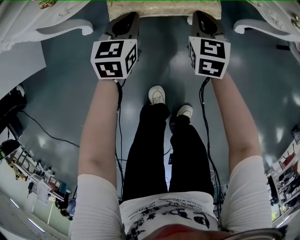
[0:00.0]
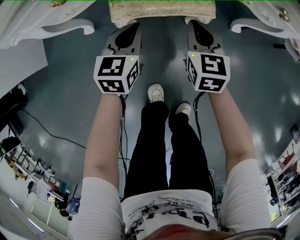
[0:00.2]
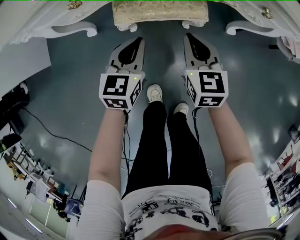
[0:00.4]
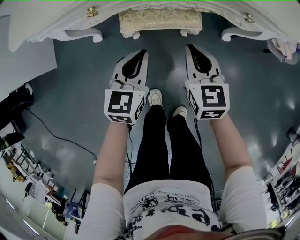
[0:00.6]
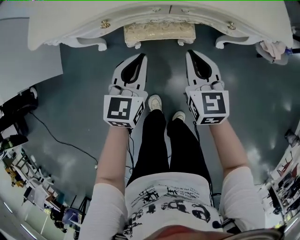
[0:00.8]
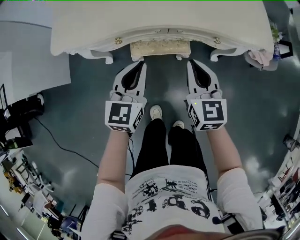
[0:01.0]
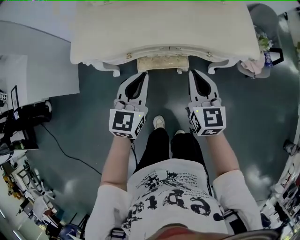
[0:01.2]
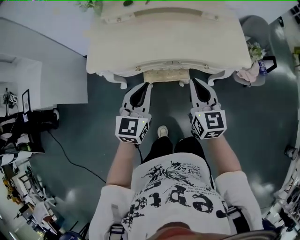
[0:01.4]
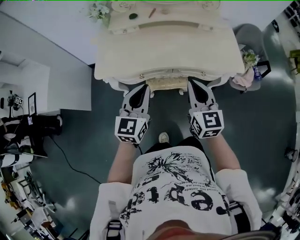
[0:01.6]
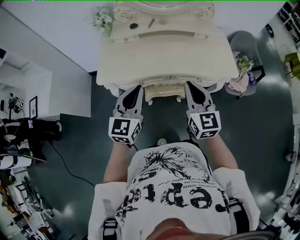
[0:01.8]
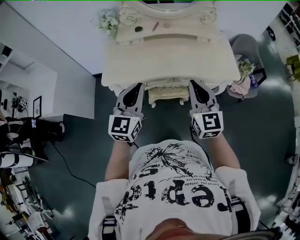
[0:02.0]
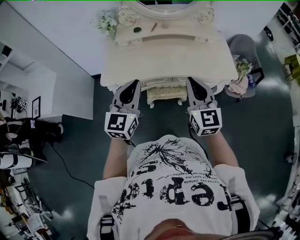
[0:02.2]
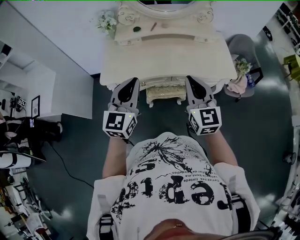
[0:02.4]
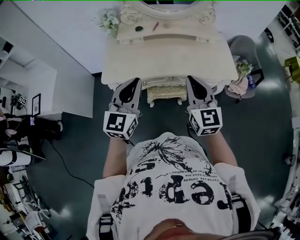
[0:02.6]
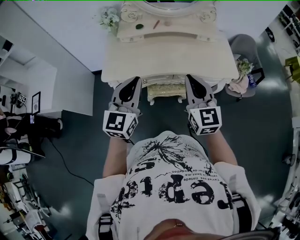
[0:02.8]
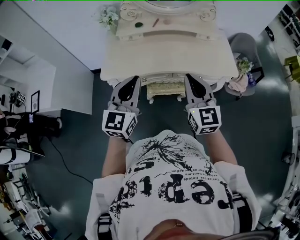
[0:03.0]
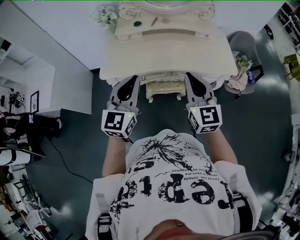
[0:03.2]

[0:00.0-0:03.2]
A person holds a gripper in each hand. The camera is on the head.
0:00.0 to 0:01.6: The two grippers go roughly 60 cm upward. The left gripper rotates approximately 30 degrees; the right gripper changes its angle by about 30 degrees.
0:01.6 to 0:03.2: Both grippers move upward, about 10 cm.

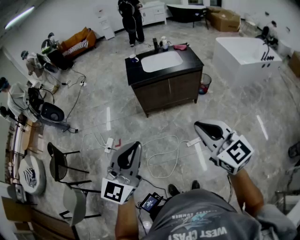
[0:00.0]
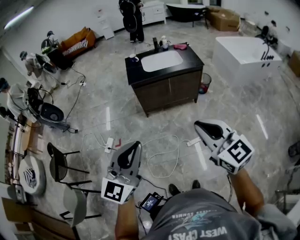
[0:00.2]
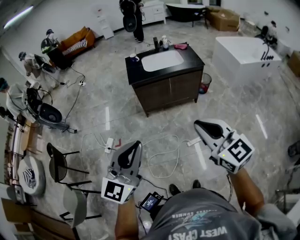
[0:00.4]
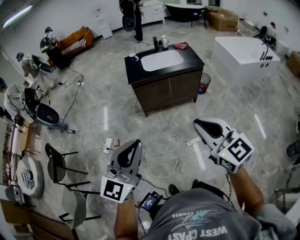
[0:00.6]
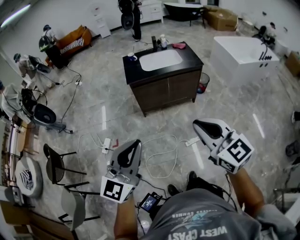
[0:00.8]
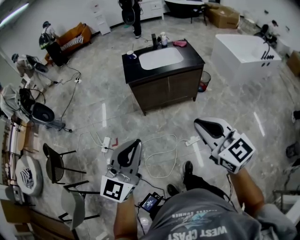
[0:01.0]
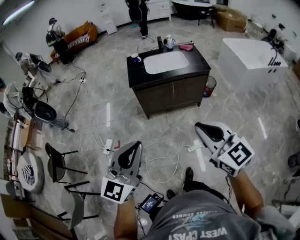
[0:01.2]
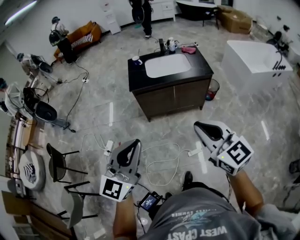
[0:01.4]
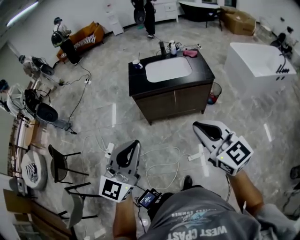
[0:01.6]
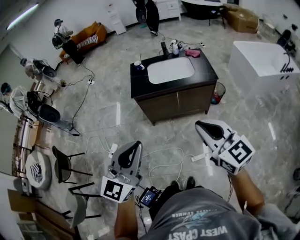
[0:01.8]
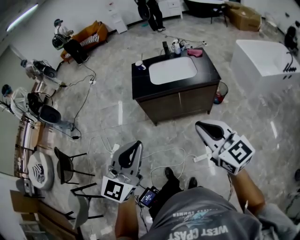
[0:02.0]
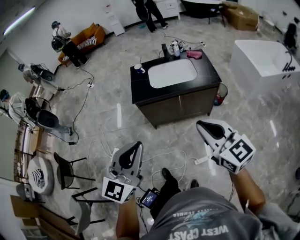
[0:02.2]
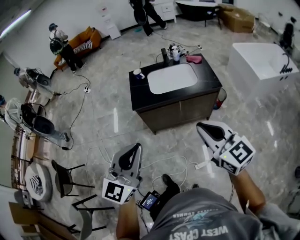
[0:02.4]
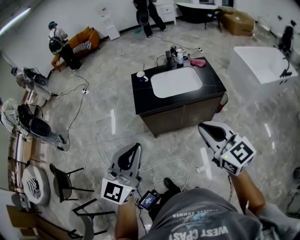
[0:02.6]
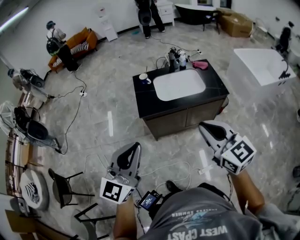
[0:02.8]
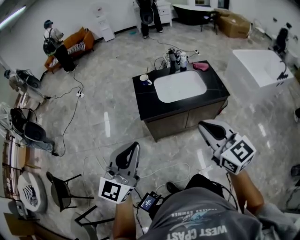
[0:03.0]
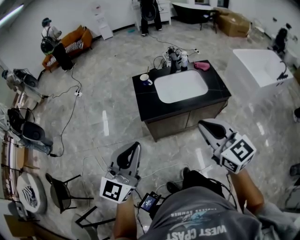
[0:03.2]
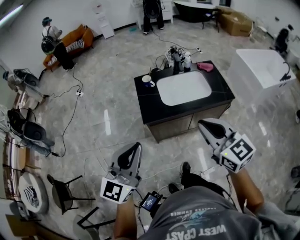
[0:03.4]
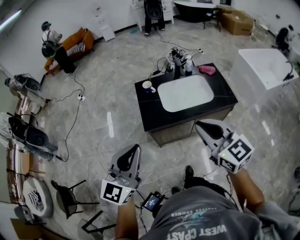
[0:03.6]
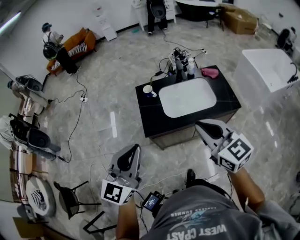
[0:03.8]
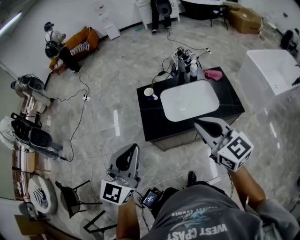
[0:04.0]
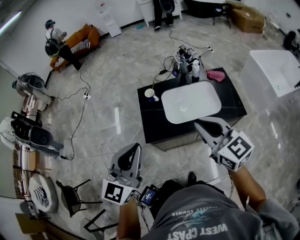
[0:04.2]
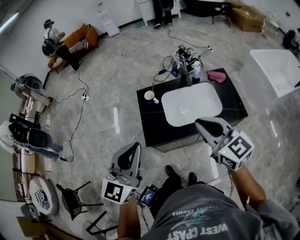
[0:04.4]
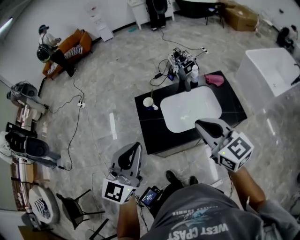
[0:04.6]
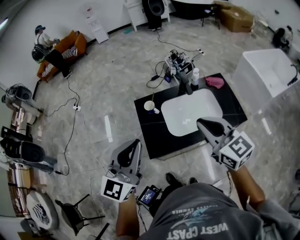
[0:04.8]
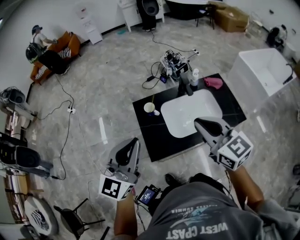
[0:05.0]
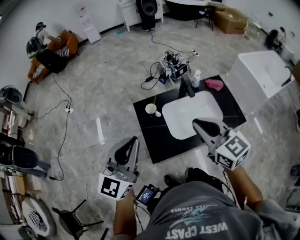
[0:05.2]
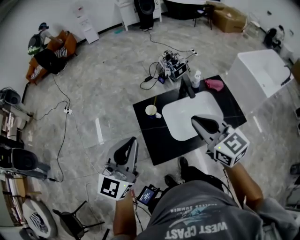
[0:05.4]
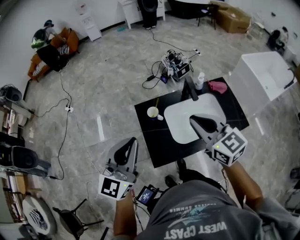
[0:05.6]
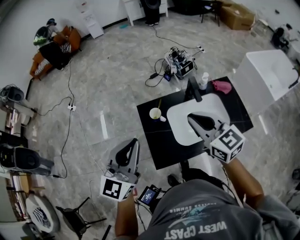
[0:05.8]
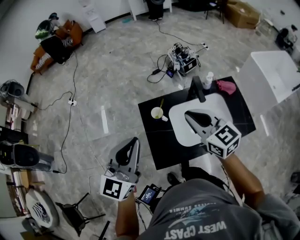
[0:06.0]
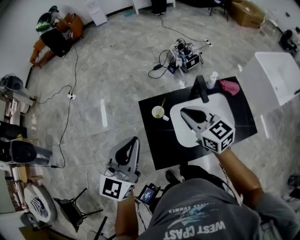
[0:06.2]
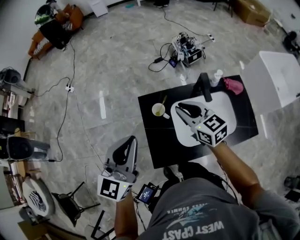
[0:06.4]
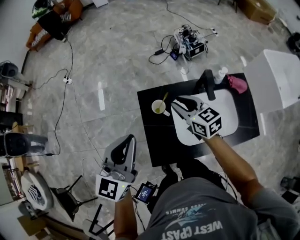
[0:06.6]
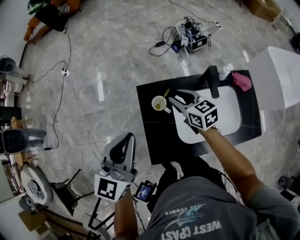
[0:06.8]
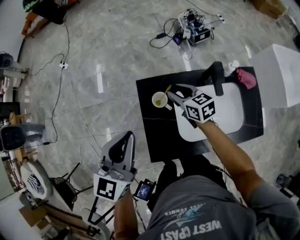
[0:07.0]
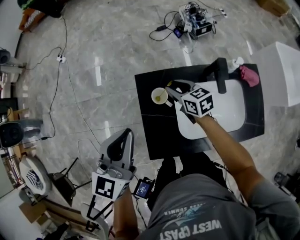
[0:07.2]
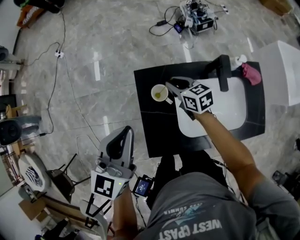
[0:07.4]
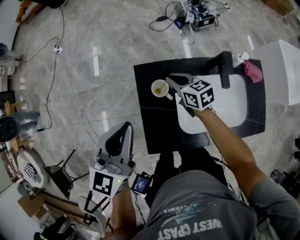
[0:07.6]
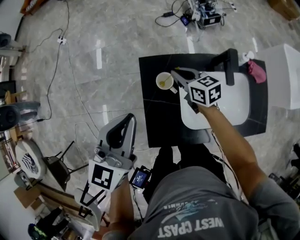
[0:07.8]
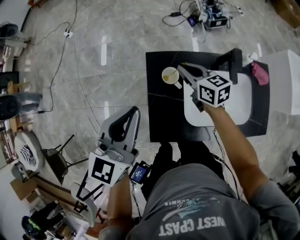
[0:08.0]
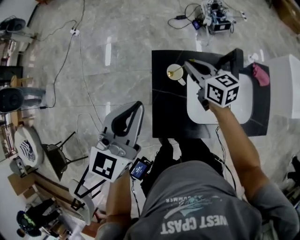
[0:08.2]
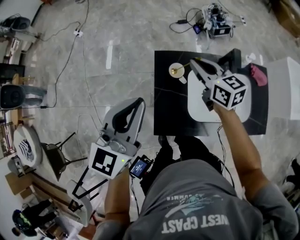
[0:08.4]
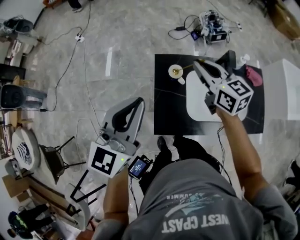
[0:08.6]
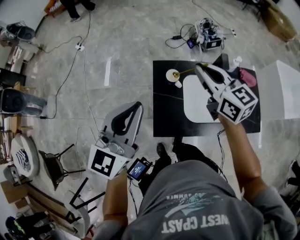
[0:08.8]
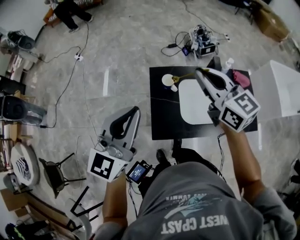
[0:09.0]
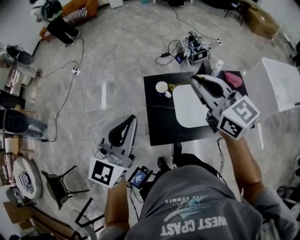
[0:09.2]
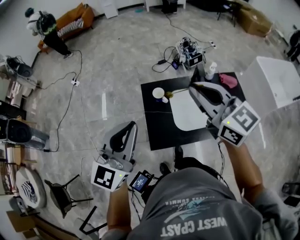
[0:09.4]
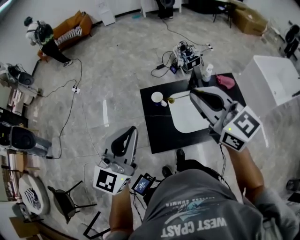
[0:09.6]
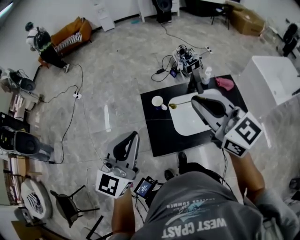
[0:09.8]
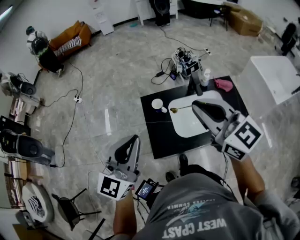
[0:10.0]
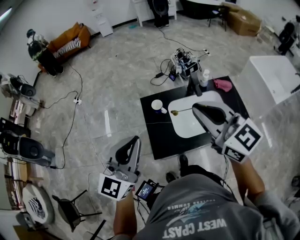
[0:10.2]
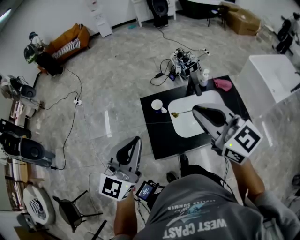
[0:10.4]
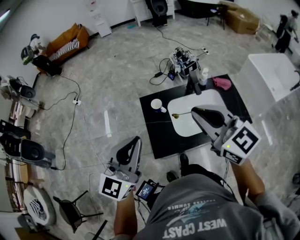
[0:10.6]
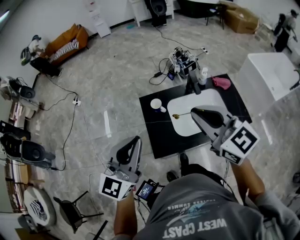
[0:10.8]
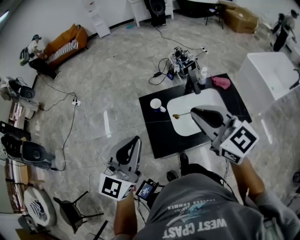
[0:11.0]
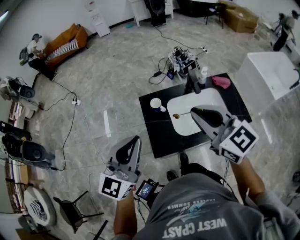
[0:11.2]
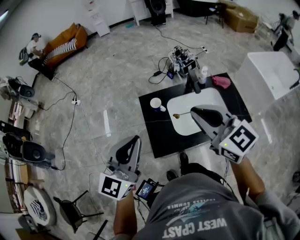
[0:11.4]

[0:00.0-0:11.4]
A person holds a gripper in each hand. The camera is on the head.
0:00.0 to 0:01.4: Both grippers travel together forward, roughly 15 cm.
0:01.4 to 0:02.8: Both grippers travel together forward, roughly 25 cm.
0:02.8 to 0:04.2: The two grippers go about 25 cm forward.
0:04.2 to 0:05.6: The grippers both shift forward and to the left by about 20 cm.
0:05.6 to 0:07.2: The right gripper moves downward and forward, approximately 40 cm, changes its angle by about 30 degrees, and opens up, while the left gripper heads downward and forward, covering about 20 cm, and rotates about 20 degrees.
0:07.2 to 0:08.6: The right gripper shifts some 20 cm upward, changes its angle by about 20 degrees, and closes, while the left gripper heads backward and upward, covering roughly 10 cm.
0:08.6 to 0:10.0: The right gripper is displaced backward and upward by about 30 cm, and rotates about 20 degrees. The left gripper travels backward and upward by some 10 cm.
0:10.0 to 0:11.4: The grippers make only small movements.

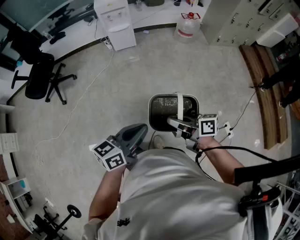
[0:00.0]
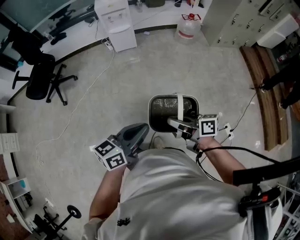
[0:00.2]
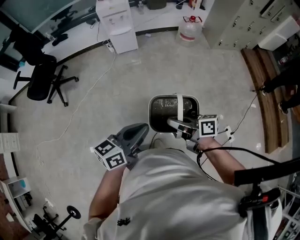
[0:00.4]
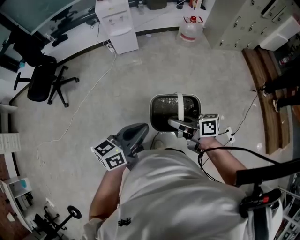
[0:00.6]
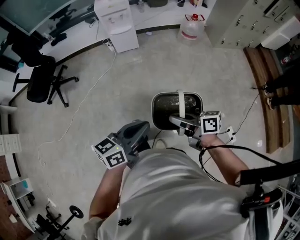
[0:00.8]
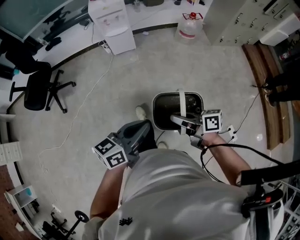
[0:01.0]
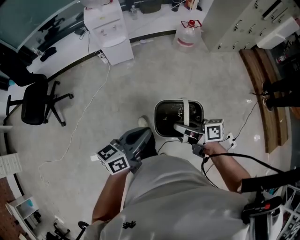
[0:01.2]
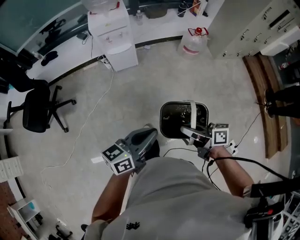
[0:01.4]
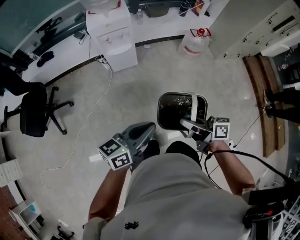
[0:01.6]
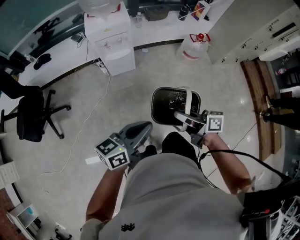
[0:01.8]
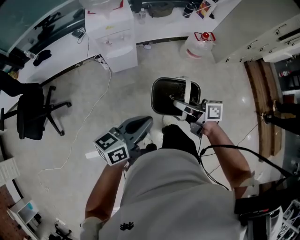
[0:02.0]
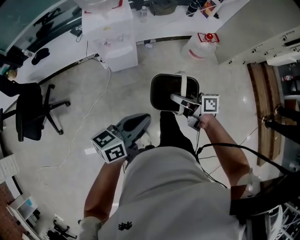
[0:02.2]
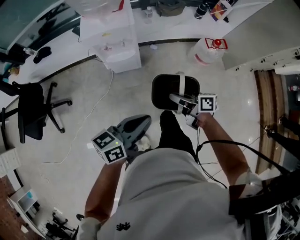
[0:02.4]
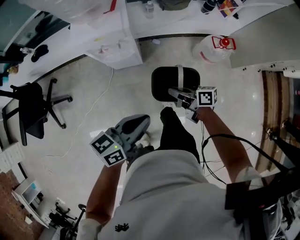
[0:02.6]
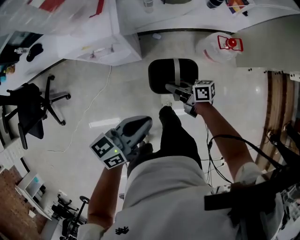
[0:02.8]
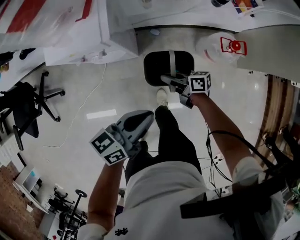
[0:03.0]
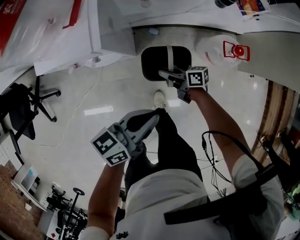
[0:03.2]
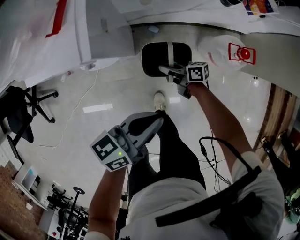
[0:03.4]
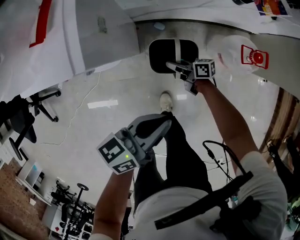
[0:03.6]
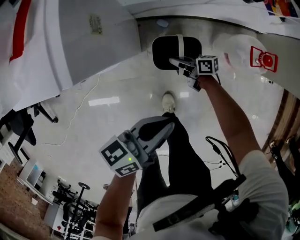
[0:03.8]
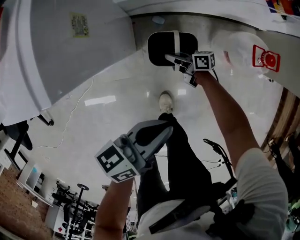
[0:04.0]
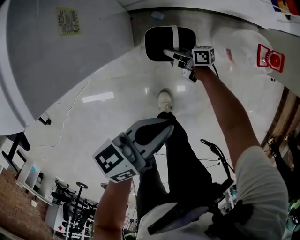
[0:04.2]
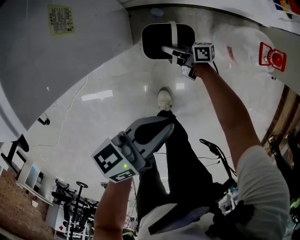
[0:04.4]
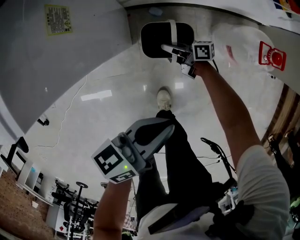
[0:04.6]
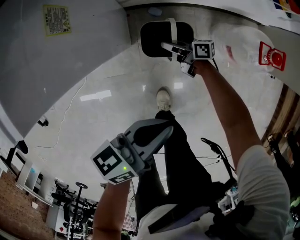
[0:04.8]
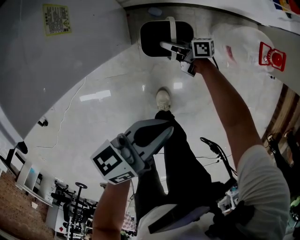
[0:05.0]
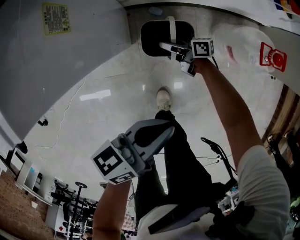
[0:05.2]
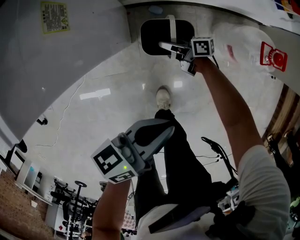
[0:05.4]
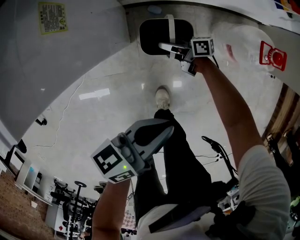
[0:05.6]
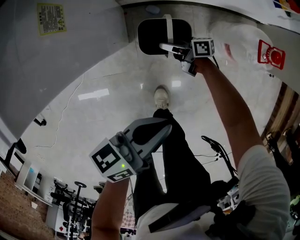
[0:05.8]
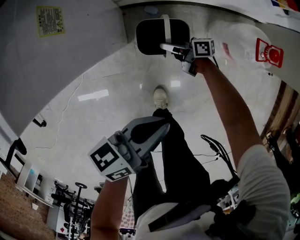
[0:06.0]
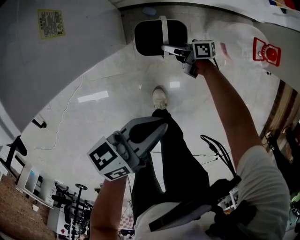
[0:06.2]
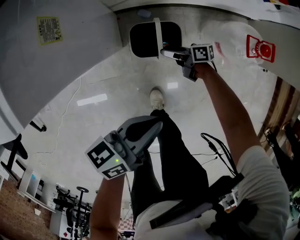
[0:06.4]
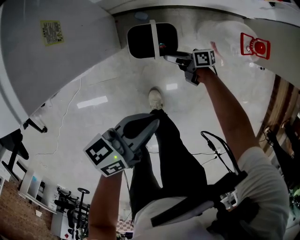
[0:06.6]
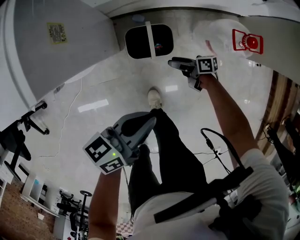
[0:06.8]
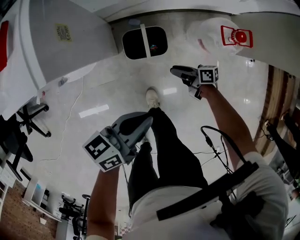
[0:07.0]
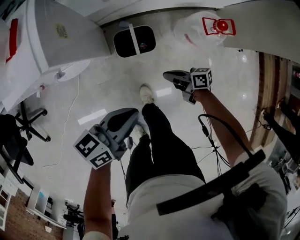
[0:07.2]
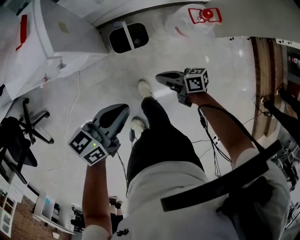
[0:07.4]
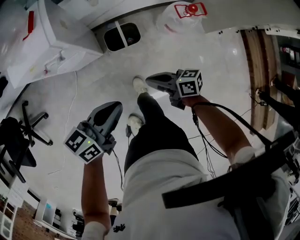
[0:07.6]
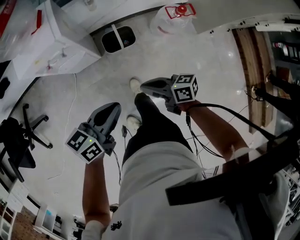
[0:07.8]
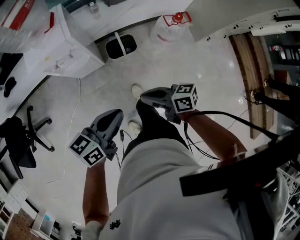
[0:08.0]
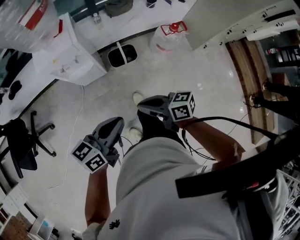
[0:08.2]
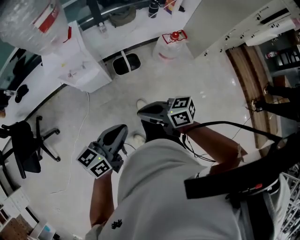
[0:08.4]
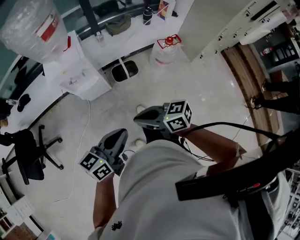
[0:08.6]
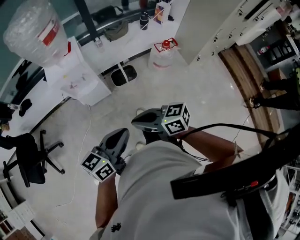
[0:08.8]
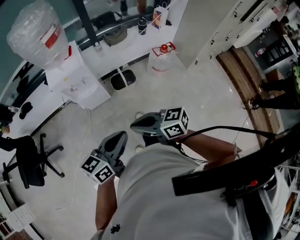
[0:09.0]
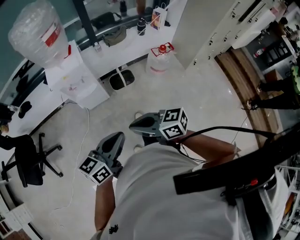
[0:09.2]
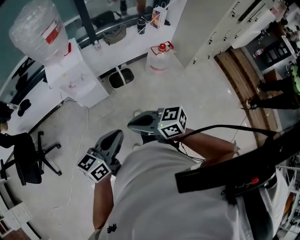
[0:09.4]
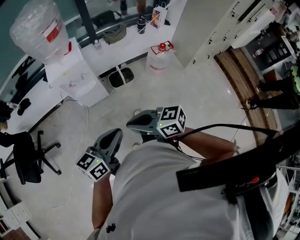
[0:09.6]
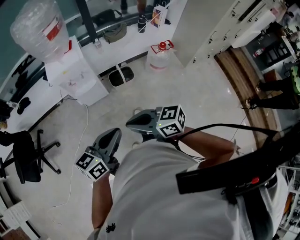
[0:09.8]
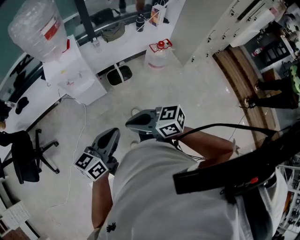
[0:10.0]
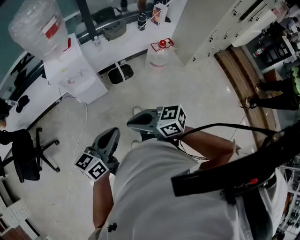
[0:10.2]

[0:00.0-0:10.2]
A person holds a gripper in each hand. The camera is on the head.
0:00.0 to 0:01.4: Both grippers travel together forward, about 30 cm.
0:01.4 to 0:03.0: Both grippers are carried forward, approximately 60 cm.
0:03.0 to 0:04.4: The grippers both shift downward by some 25 cm.
0:04.4 to 0:05.8: The right gripper opens.
0:05.8 to 0:07.2: The right gripper ends up roughly 30 cm from where it was, and closes up, while the left gripper is displaced upward by roughly 10 cm.
0:07.2 to 0:08.8: The left gripper changes place by roughly 40 cm, and turns by roughly 20 degrees; the right gripper goes some 40 cm upward, and turns by roughly 40 degrees.
0:08.8 to 0:10.2: The right gripper changes place by about 5 cm.
